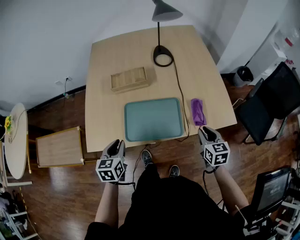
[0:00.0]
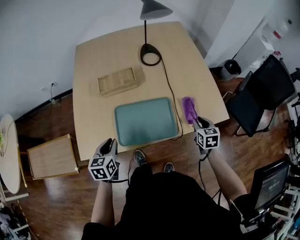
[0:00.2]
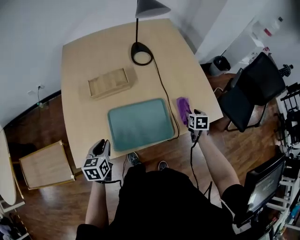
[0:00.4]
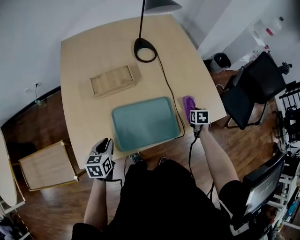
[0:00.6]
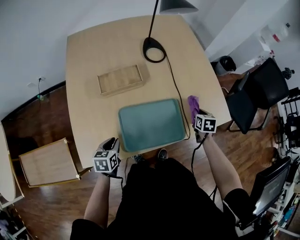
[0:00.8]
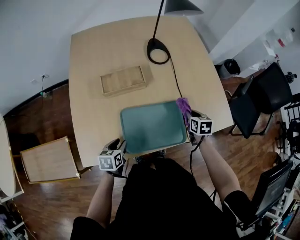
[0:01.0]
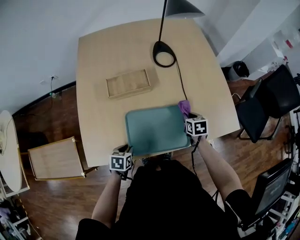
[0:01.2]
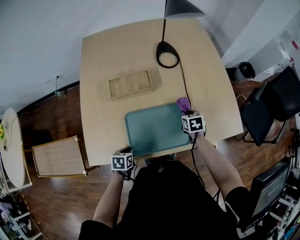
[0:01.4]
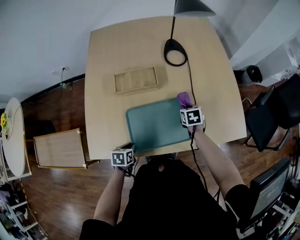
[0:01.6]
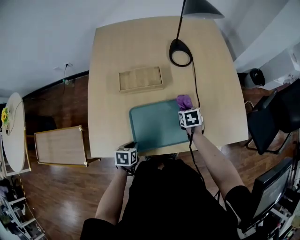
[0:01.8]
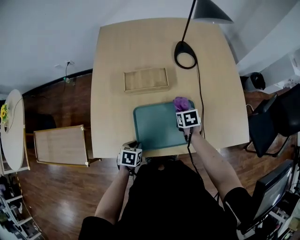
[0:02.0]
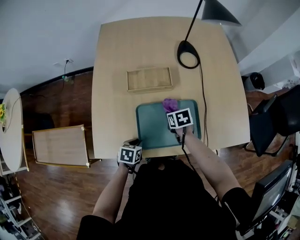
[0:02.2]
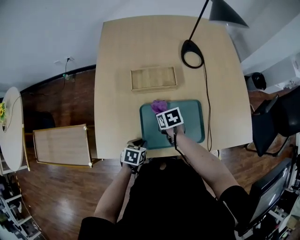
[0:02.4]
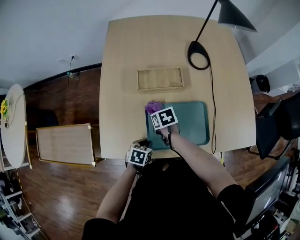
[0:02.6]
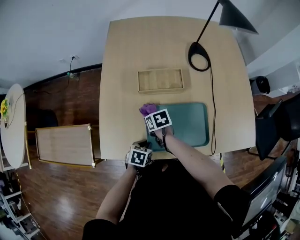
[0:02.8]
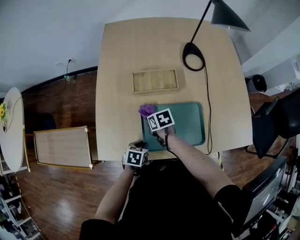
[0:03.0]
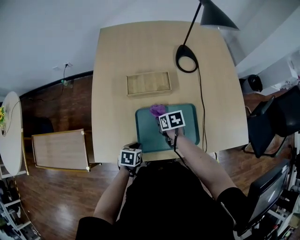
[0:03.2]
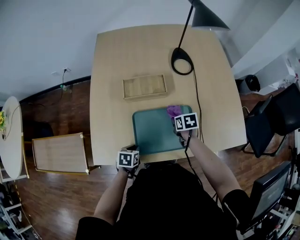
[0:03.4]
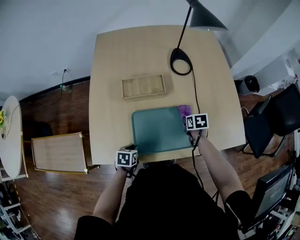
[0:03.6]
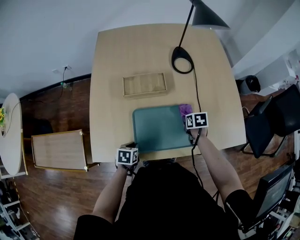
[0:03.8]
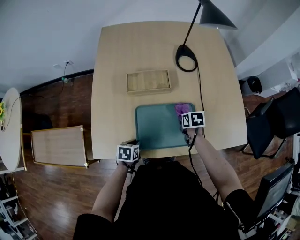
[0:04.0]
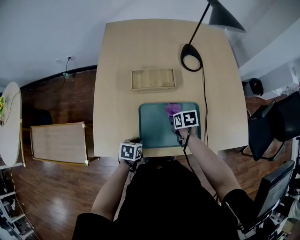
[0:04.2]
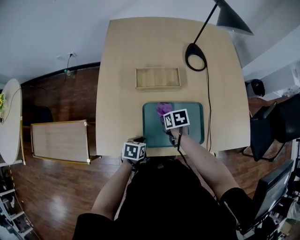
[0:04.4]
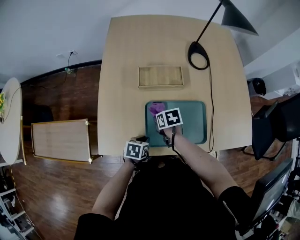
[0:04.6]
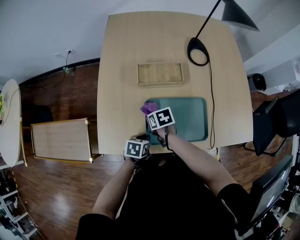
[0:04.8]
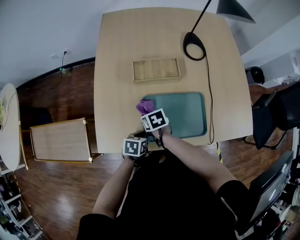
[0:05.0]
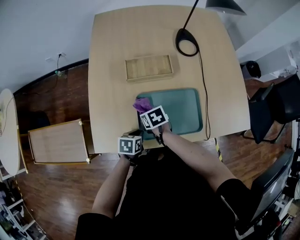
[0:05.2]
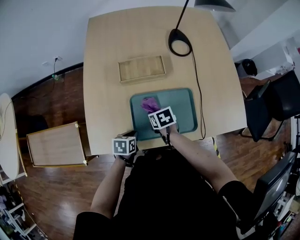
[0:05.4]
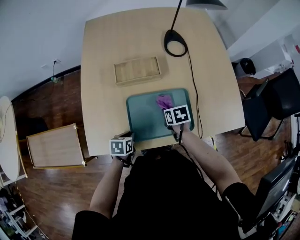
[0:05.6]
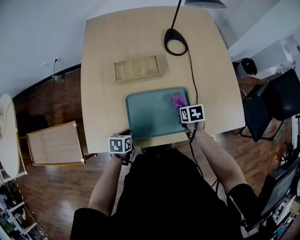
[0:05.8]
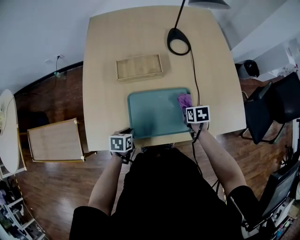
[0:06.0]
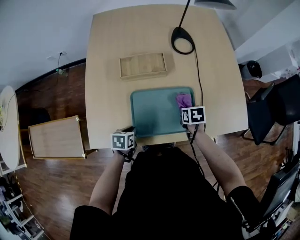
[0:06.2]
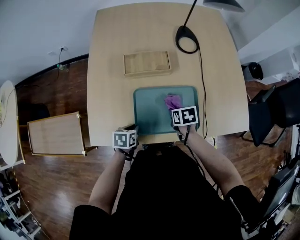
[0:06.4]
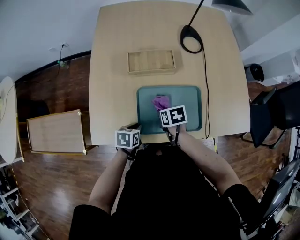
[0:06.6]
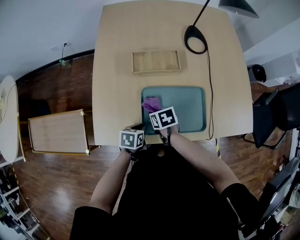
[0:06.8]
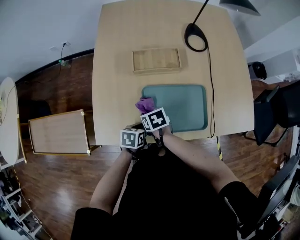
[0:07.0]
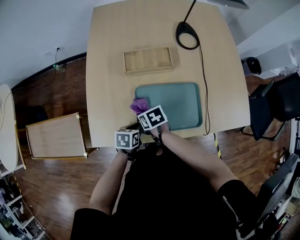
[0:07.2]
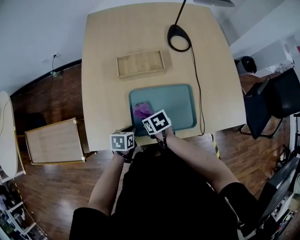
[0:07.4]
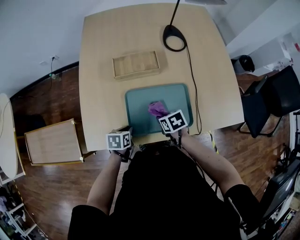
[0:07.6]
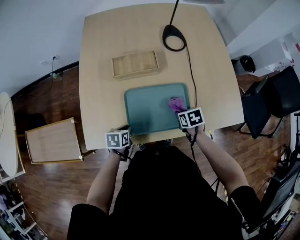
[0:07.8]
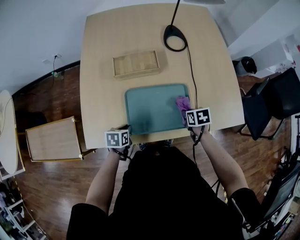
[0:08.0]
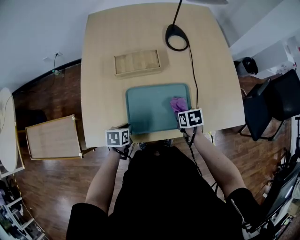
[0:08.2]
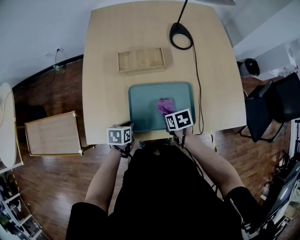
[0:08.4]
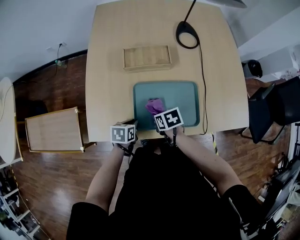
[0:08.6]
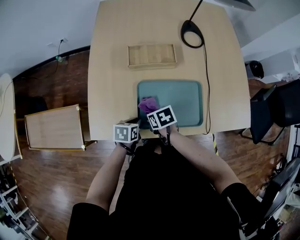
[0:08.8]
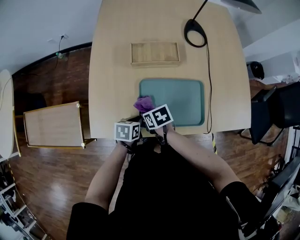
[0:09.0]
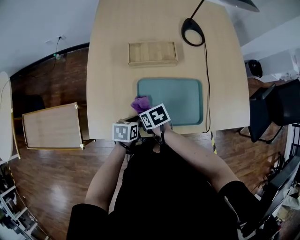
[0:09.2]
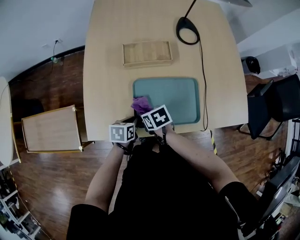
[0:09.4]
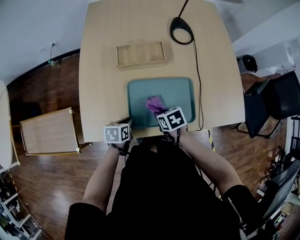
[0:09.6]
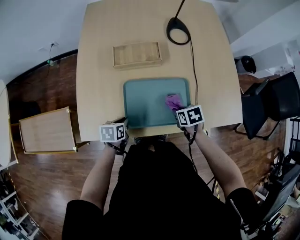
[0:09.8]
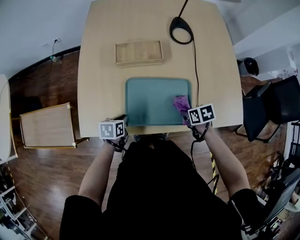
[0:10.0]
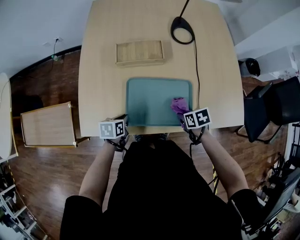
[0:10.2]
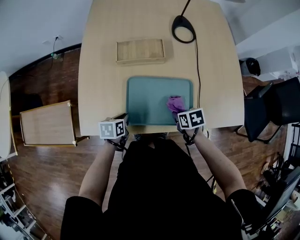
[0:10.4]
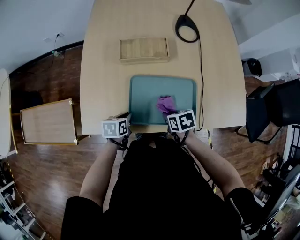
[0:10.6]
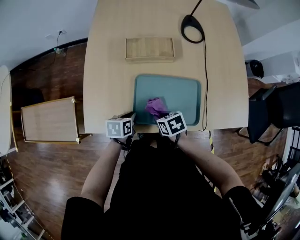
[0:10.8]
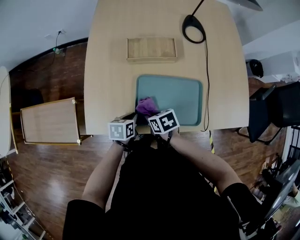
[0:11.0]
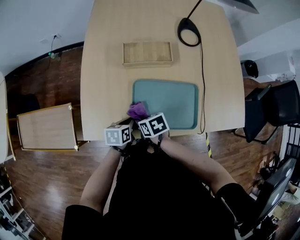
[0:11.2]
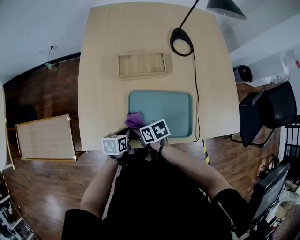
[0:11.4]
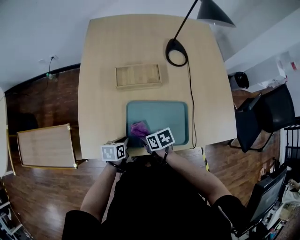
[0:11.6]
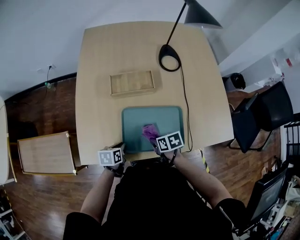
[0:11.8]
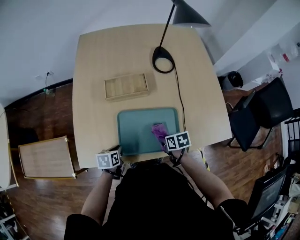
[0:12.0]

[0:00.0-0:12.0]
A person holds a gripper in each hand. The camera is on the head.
0:00.0 to 0:01.6: The right gripper shifts some 30 cm forward, to the left and downward, rotates about 30 degrees, and opens and closes again. Meanwhile the left gripper heads downward, covering about 15 cm, and rotates approximately 30 degrees.
0:01.6 to 0:03.0: The right gripper travels to the left by approximately 30 cm, and changes its angle by roughly 30 degrees.
0:03.0 to 0:04.4: The right gripper travels to the right and back again, some 25 cm each way.
0:04.4 to 0:06.0: The right gripper goes some 20 cm to the right.
0:06.0 to 0:07.6: The right gripper shifts some 15 cm to the left.
0:07.6 to 0:09.0: The right gripper heads to the left, covering approximately 15 cm.
0:09.0 to 0:10.4: The right gripper travels to the right by some 20 cm.
0:10.4 to 0:12.0: The right gripper moves about 20 cm to the left and comes back.

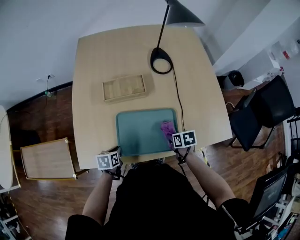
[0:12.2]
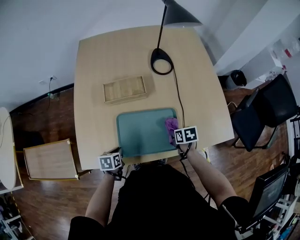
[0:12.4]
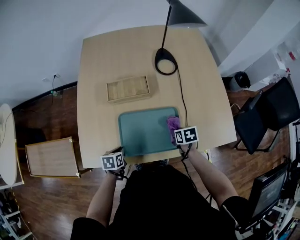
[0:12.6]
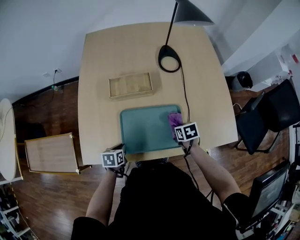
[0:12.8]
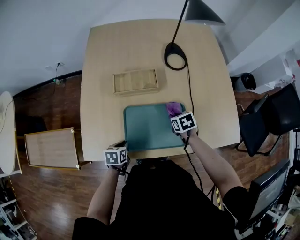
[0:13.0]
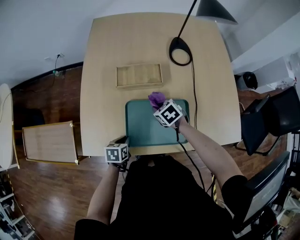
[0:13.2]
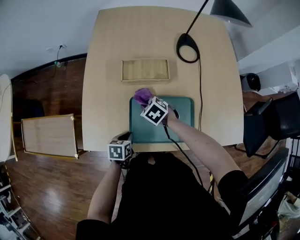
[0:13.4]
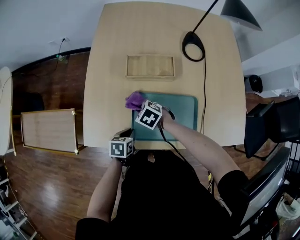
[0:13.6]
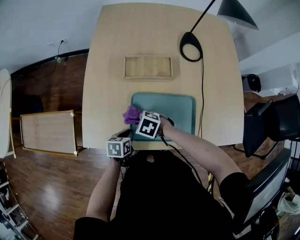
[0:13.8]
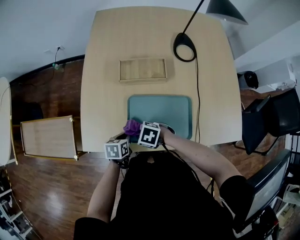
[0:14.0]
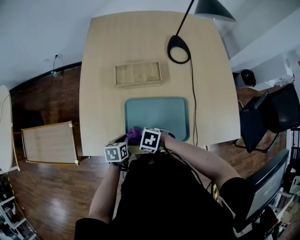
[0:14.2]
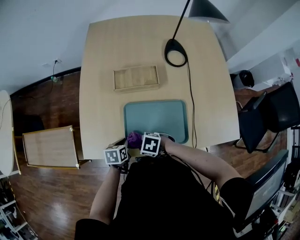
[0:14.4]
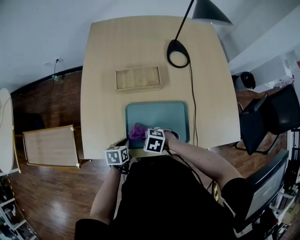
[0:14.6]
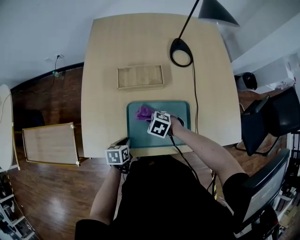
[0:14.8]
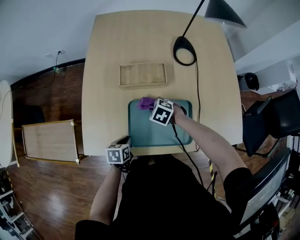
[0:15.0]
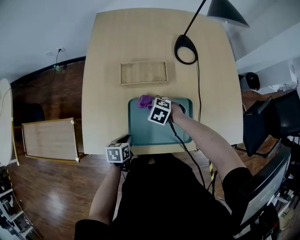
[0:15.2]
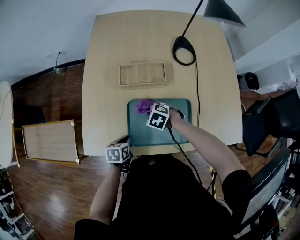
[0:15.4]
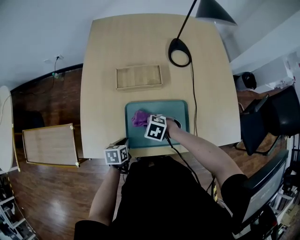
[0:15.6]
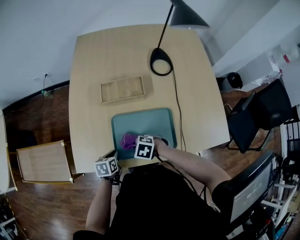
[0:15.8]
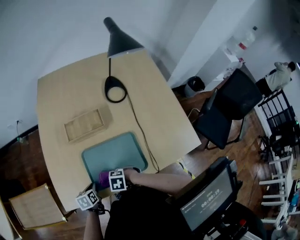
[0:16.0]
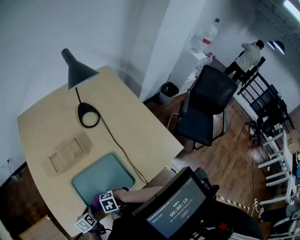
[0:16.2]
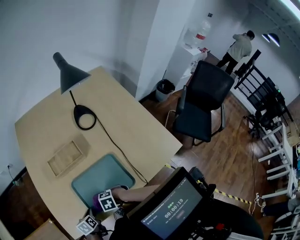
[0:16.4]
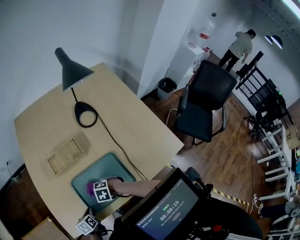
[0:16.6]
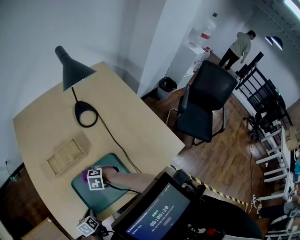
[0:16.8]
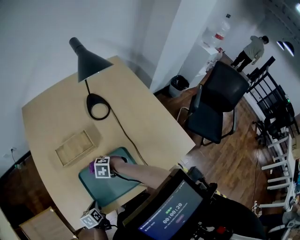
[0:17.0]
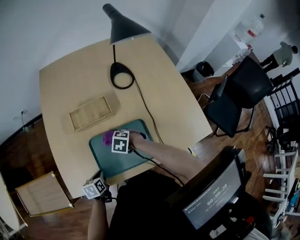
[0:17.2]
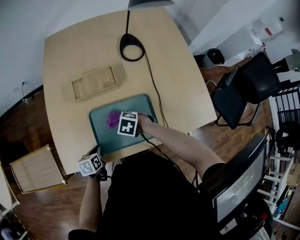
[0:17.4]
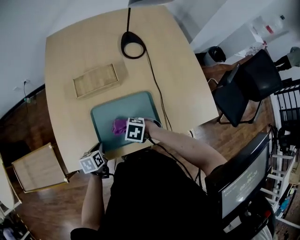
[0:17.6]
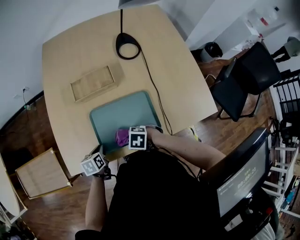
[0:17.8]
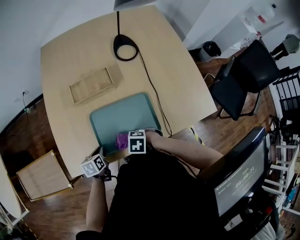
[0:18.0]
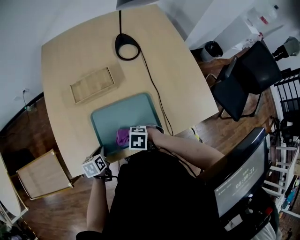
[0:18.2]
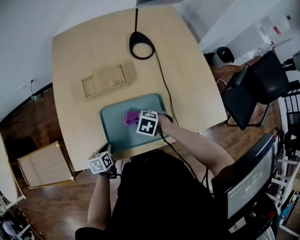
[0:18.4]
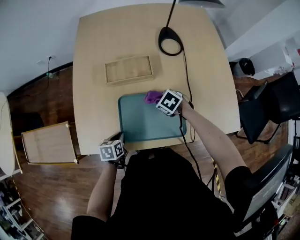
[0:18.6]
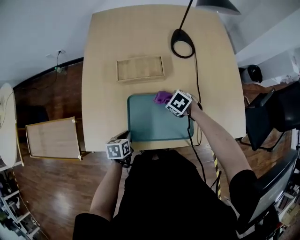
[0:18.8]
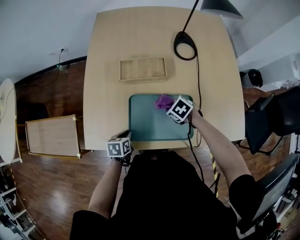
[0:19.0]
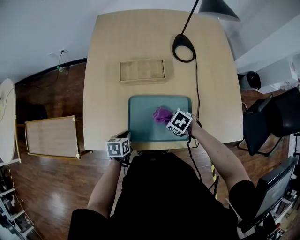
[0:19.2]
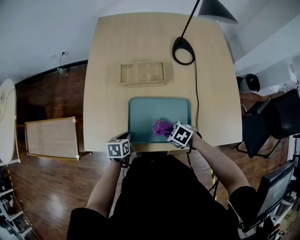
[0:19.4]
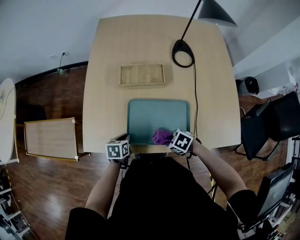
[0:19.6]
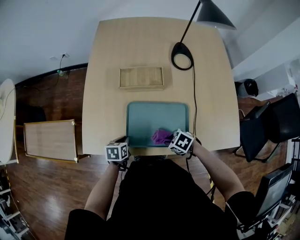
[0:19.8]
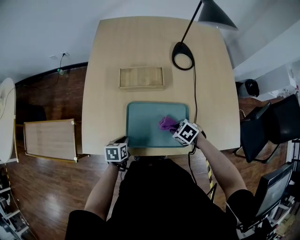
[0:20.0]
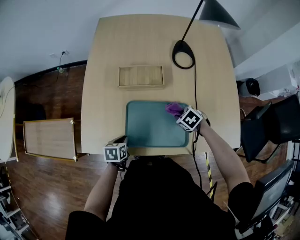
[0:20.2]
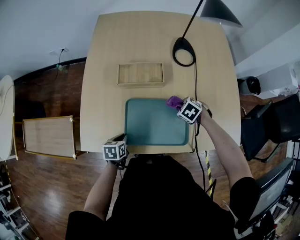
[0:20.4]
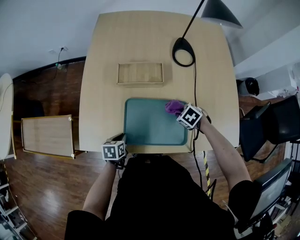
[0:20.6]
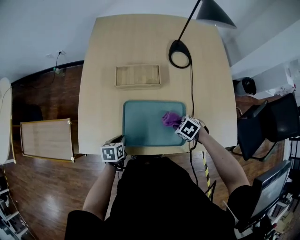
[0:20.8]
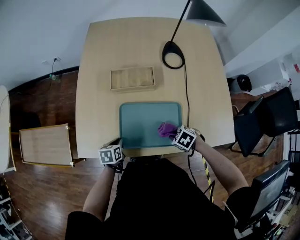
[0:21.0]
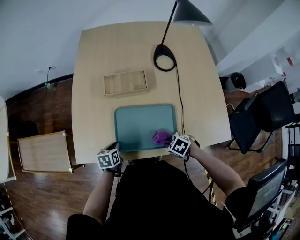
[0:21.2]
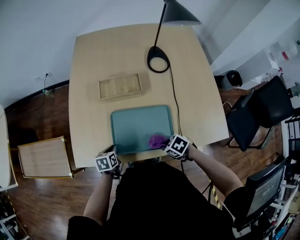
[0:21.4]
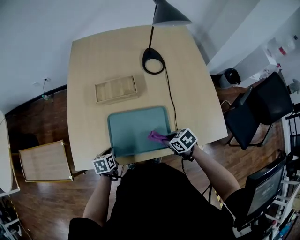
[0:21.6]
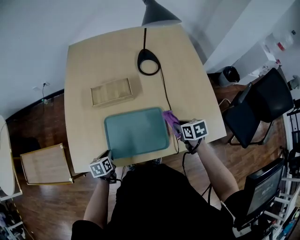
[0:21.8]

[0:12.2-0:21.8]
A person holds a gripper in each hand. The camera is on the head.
0:12.2 to 0:13.8: The right gripper ends up about 25 cm from where it was, and rotates around the line of its fingers by approximately 70 degrees, counterclockwise from behind.
0:13.8 to 0:15.4: The right gripper ends up roughly 10 cm from where it was.
0:20.2 to 0:21.8: The right gripper shifts by roughly 15 cm, and twists about 50 degrees clockwise, seen from behind.

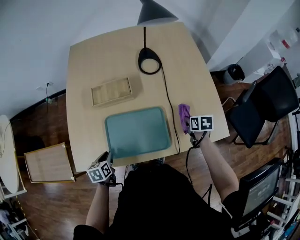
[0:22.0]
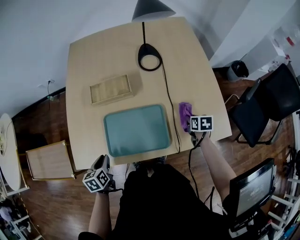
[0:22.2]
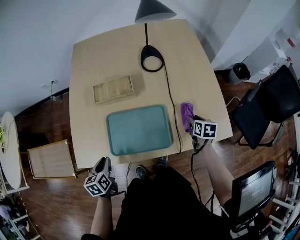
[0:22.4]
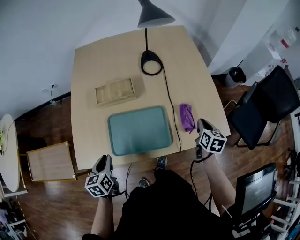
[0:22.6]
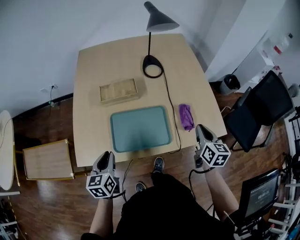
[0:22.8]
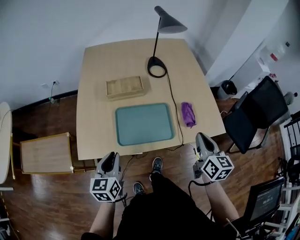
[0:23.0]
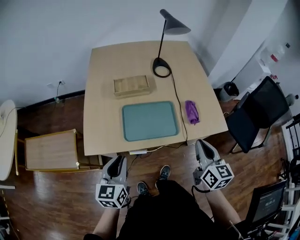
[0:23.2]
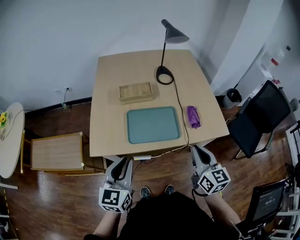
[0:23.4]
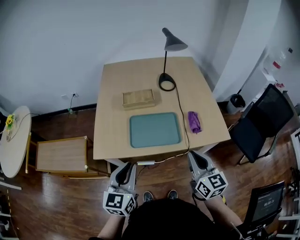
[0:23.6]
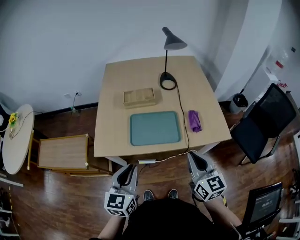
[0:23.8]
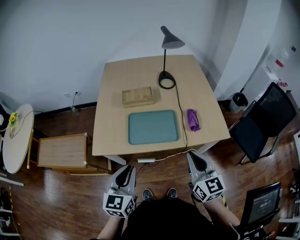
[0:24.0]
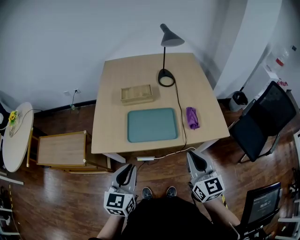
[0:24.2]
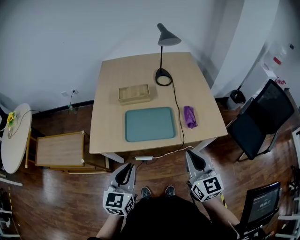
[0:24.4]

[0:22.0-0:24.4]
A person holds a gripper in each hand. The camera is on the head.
0:22.0 to 0:23.2: The right gripper moves upward, backward and to the left, approximately 35 cm, angles its fingers upward, by some 40 degrees, and opens and closes again; the left gripper shifts about 25 cm upward and backward, and tips its fingers upward by approximately 40 degrees.
0:23.2 to 0:24.4: The right gripper heads backward, covering roughly 5 cm, while the left gripper shifts roughly 10 cm to the right, backward and upward.
